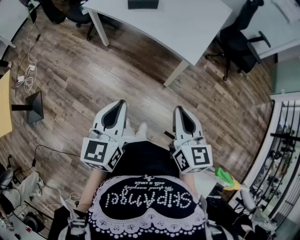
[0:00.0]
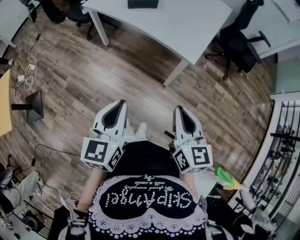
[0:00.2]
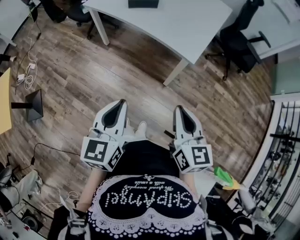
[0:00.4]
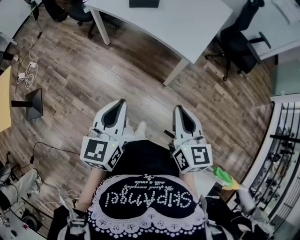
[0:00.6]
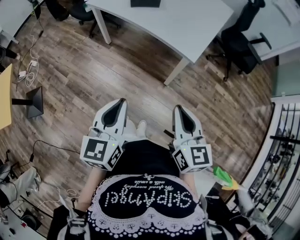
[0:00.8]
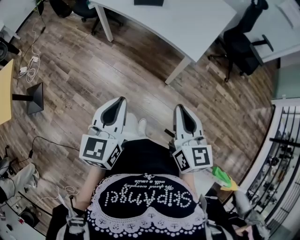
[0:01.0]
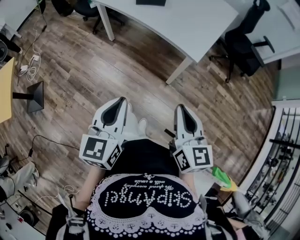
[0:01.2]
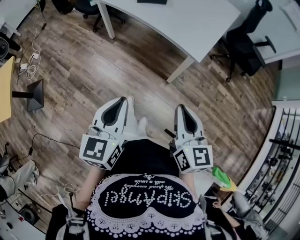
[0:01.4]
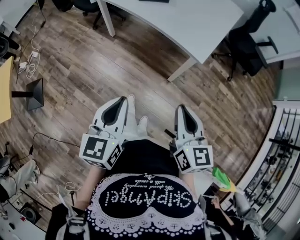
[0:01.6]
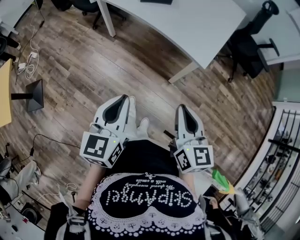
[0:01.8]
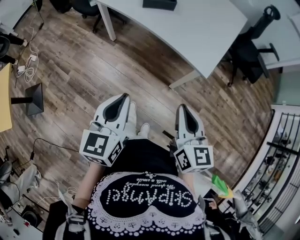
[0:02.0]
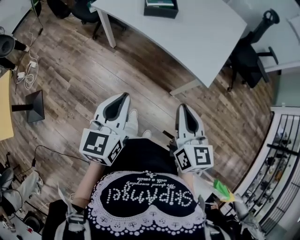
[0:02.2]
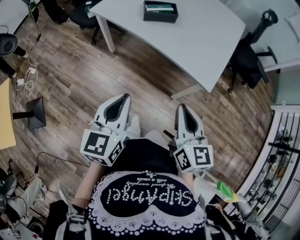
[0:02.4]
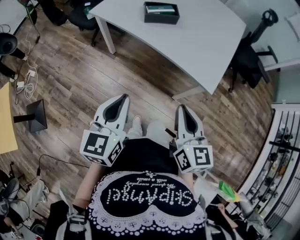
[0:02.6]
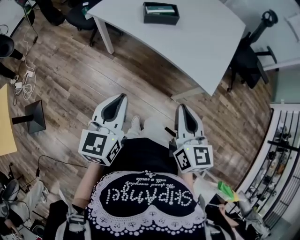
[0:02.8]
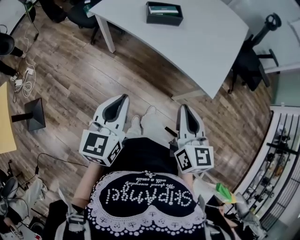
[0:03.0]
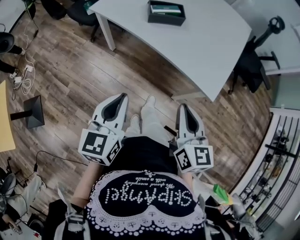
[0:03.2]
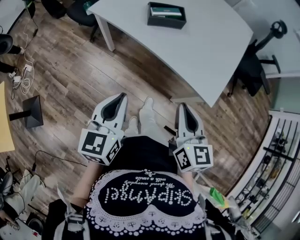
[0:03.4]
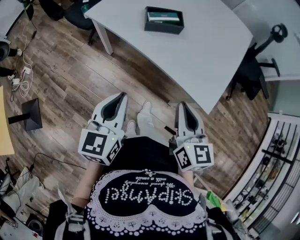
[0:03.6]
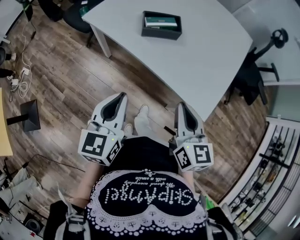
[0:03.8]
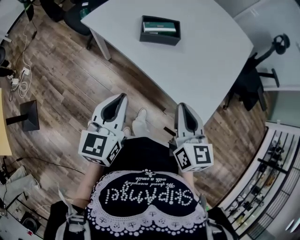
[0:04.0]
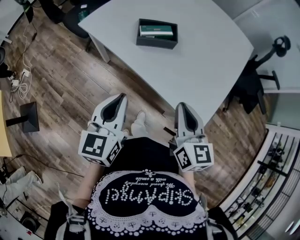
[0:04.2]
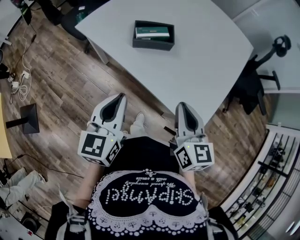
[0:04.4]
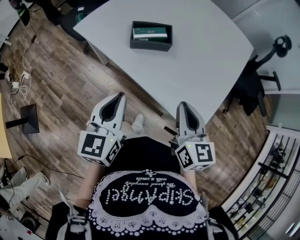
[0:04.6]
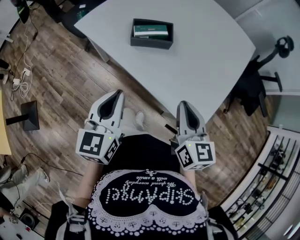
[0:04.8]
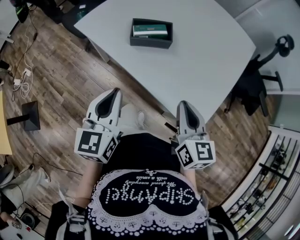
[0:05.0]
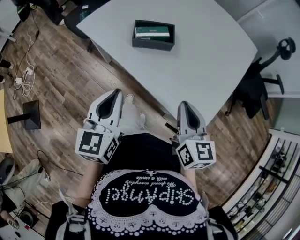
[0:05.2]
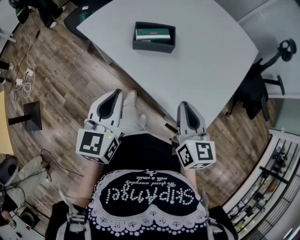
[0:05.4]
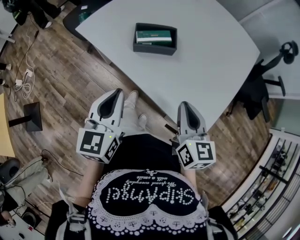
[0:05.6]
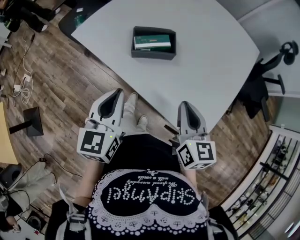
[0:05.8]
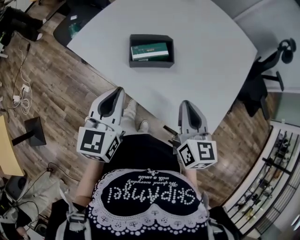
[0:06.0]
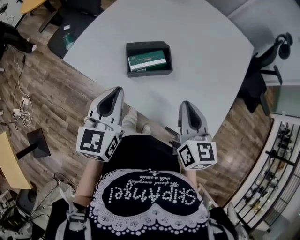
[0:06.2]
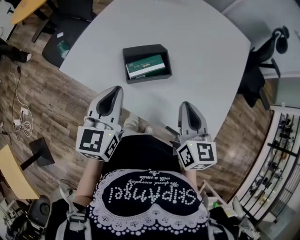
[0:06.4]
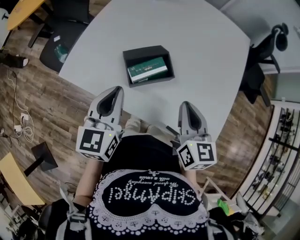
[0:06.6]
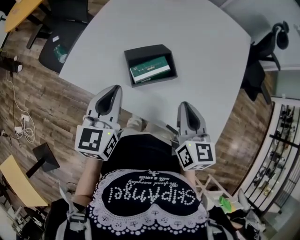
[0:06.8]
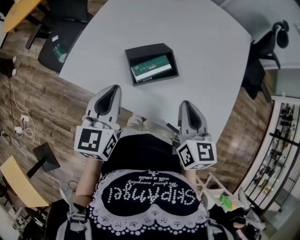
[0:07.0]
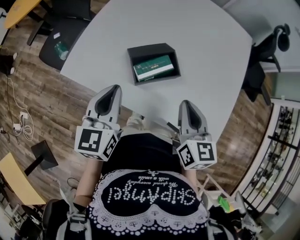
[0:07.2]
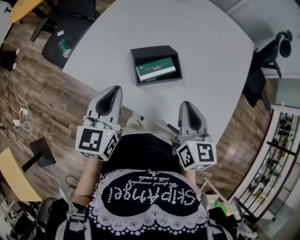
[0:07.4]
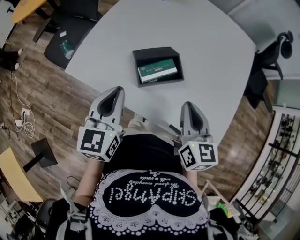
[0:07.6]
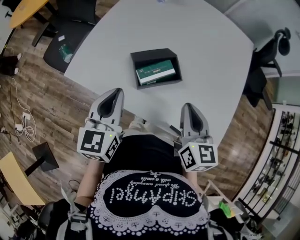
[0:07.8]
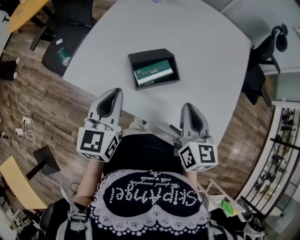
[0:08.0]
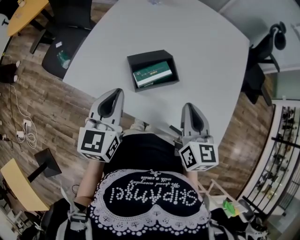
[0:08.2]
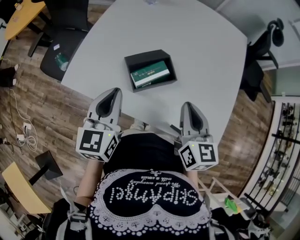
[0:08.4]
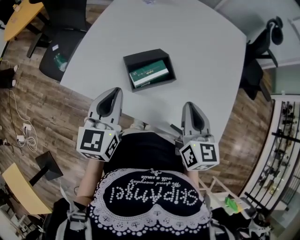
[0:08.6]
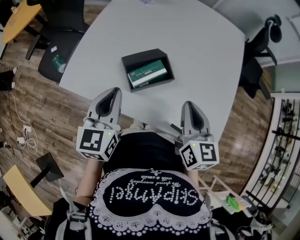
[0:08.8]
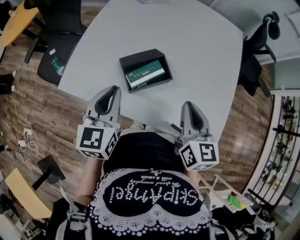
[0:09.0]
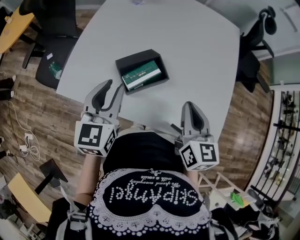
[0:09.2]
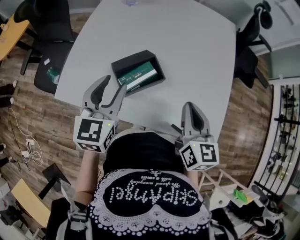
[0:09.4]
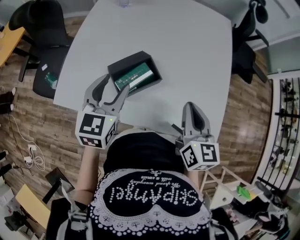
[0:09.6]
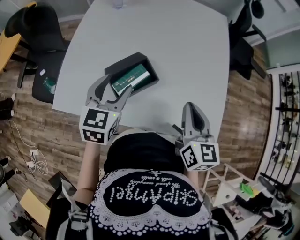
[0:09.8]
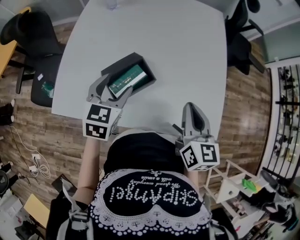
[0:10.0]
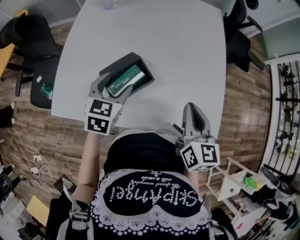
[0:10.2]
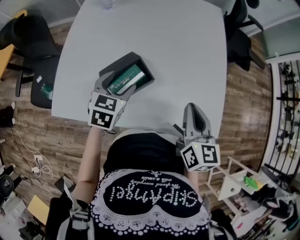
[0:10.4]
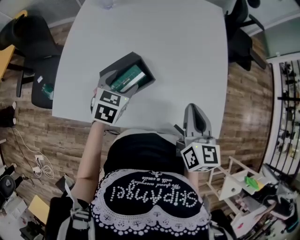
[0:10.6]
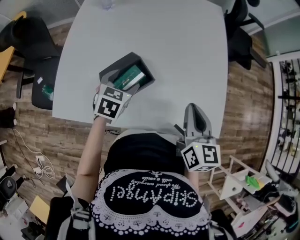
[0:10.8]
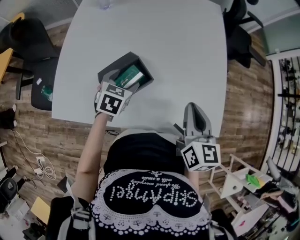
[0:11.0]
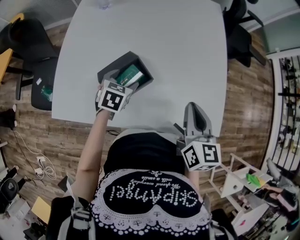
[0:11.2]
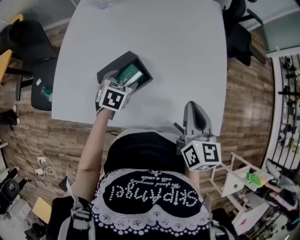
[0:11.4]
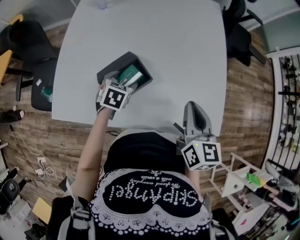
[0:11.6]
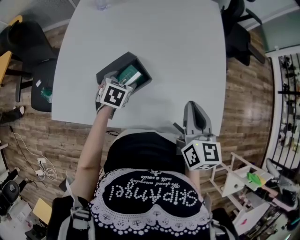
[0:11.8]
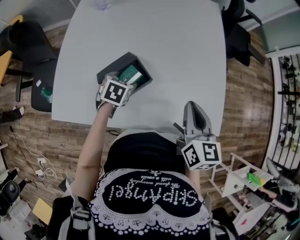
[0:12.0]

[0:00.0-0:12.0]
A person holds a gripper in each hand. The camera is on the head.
0:00.0 to 0:01.6: The grippers make only small movements.
0:01.6 to 0:03.0: Both grippers travel together forward and to the left, roughly 25 cm.
0:03.0 to 0:04.4: Both grippers move forward, about 20 cm.
0:04.4 to 0:06.0: The grippers both shift forward by approximately 15 cm.
0:06.0 to 0:07.6: The right gripper shifts some 10 cm to the left and forward, while the left gripper heads forward and to the left, covering roughly 10 cm.
0:07.6 to 0:09.0: There are only small adjustments of the grippers.
0:09.0 to 0:10.4: The left gripper shifts roughly 15 cm forward, downward and to the right, rotates about 30 degrees, and opens up. Meanwhile the right gripper goes about 5 cm to the right.
0:10.4 to 0:12.0: The left gripper moves downward, about 10 cm.

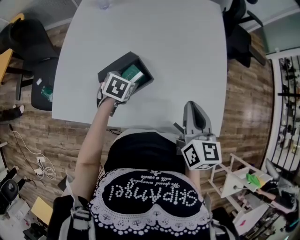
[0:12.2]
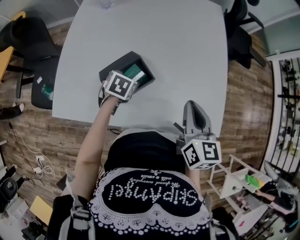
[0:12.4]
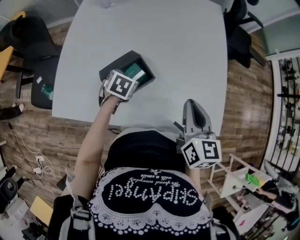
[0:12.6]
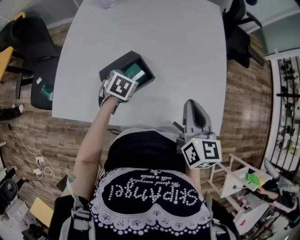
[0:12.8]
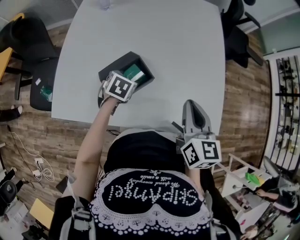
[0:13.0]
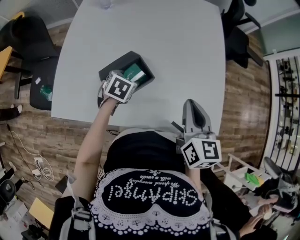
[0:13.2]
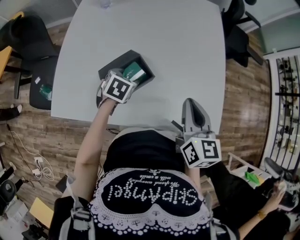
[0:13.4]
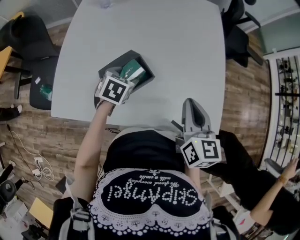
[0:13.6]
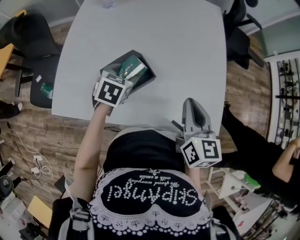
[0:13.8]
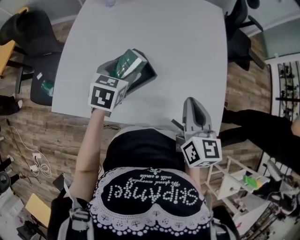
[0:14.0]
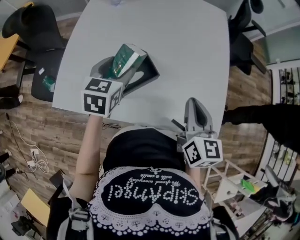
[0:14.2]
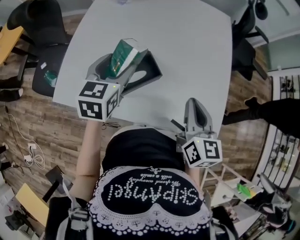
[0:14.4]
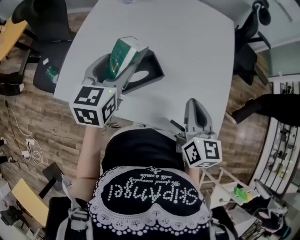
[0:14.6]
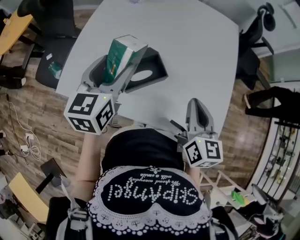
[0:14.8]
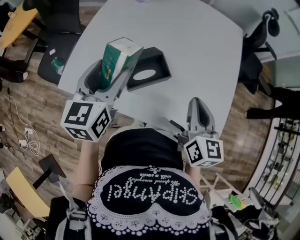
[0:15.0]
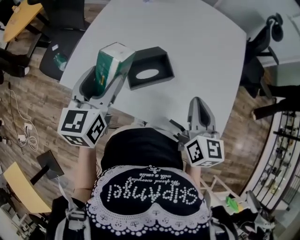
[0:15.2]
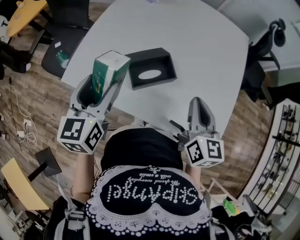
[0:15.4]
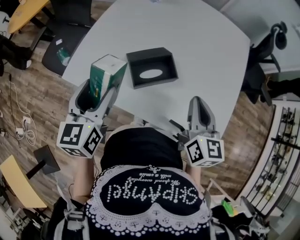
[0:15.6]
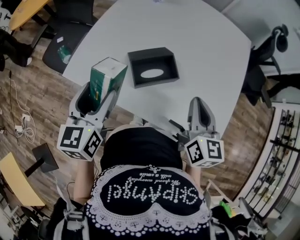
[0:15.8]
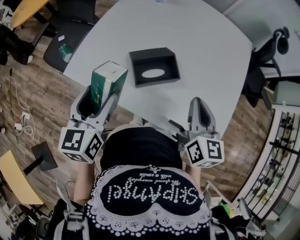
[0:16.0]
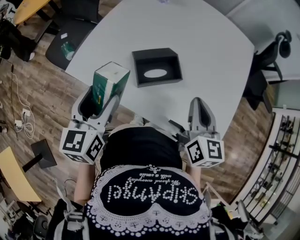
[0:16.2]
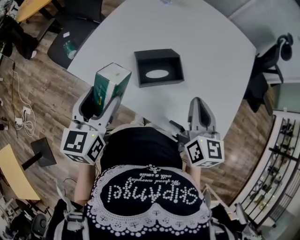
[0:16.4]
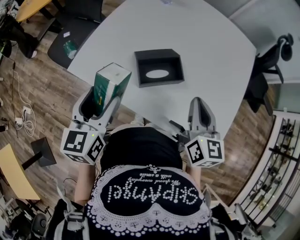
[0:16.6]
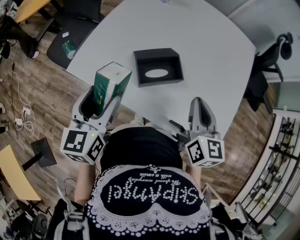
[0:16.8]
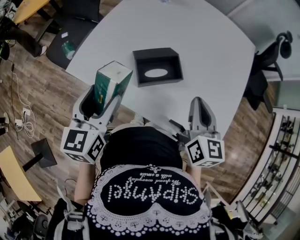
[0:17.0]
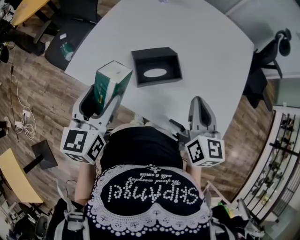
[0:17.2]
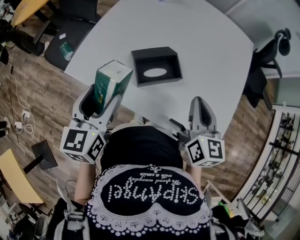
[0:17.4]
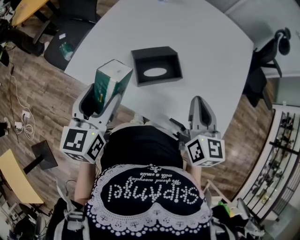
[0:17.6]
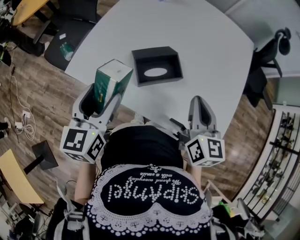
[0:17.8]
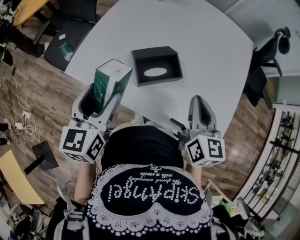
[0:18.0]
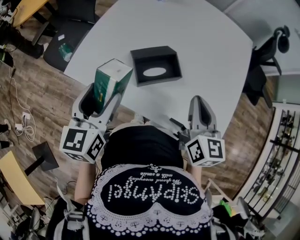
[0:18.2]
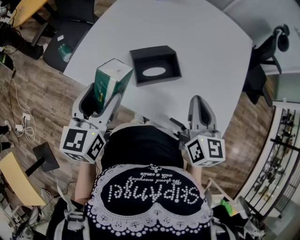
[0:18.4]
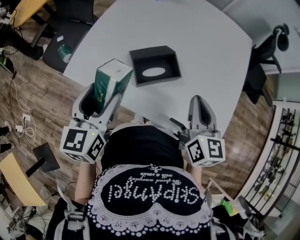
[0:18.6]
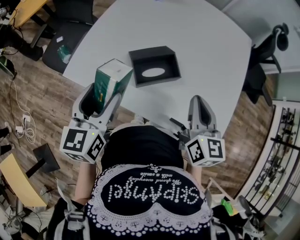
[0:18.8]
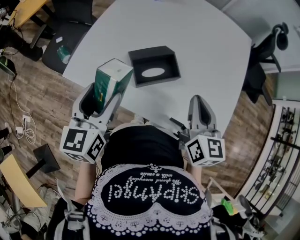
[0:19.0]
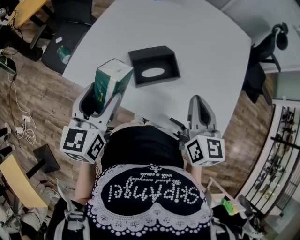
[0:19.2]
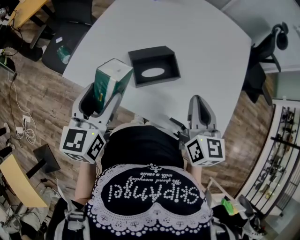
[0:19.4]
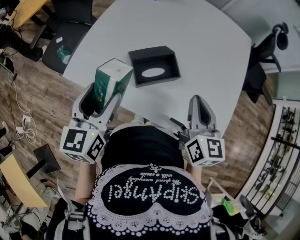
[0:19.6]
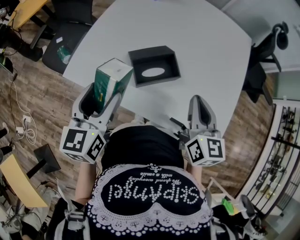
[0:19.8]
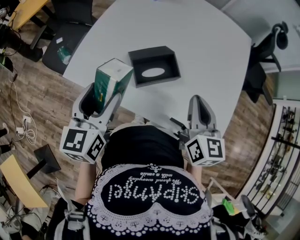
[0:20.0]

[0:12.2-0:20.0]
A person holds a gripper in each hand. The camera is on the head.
0:12.2 to 0:13.8: The left gripper moves upward, about 5 cm.
0:13.8 to 0:15.4: The right gripper changes place by some 5 cm. Meanwhile the left gripper travels upward, to the left and backward by approximately 25 cm, and angles its fingers upward, by some 30 degrees.
0:15.4 to 0:16.8: The left gripper moves about 5 cm.
0:16.8 to 0:18.4: The grippers make only small movements.
0:18.4 to 0:20.0: The two grippers keep their place.

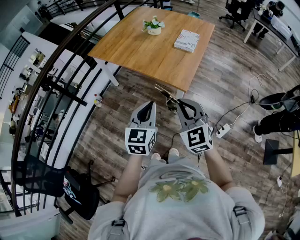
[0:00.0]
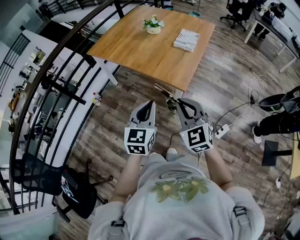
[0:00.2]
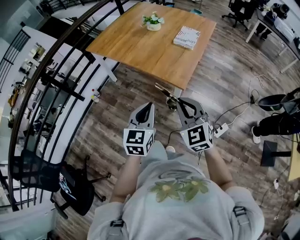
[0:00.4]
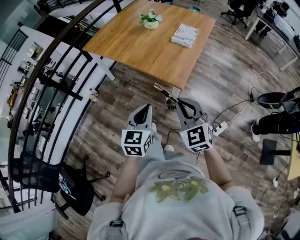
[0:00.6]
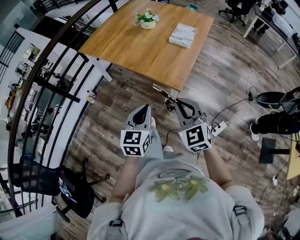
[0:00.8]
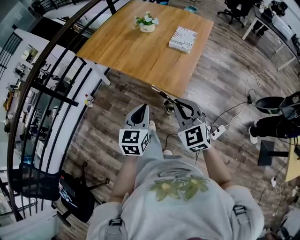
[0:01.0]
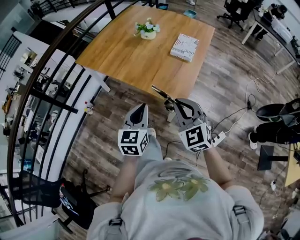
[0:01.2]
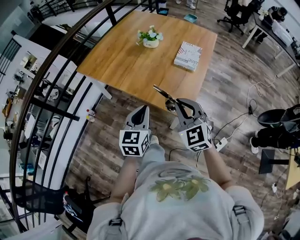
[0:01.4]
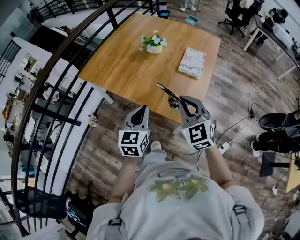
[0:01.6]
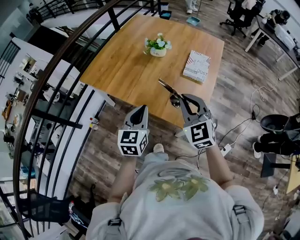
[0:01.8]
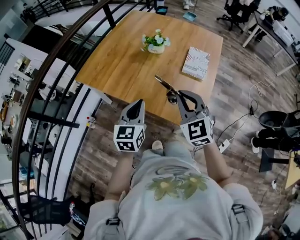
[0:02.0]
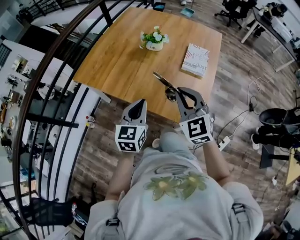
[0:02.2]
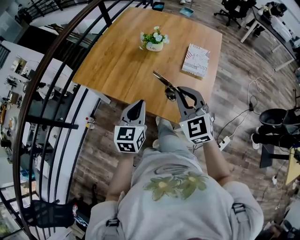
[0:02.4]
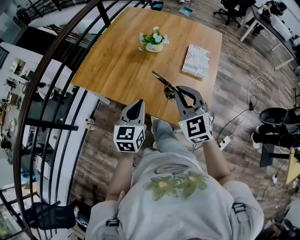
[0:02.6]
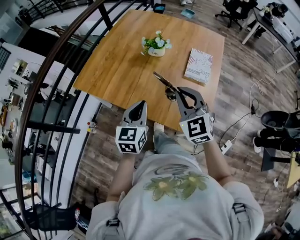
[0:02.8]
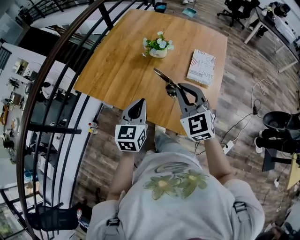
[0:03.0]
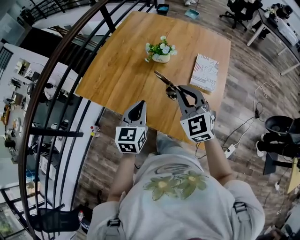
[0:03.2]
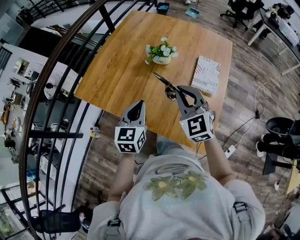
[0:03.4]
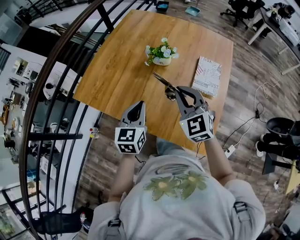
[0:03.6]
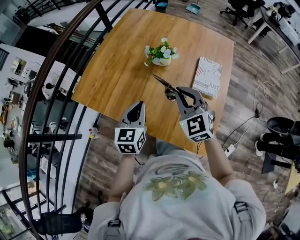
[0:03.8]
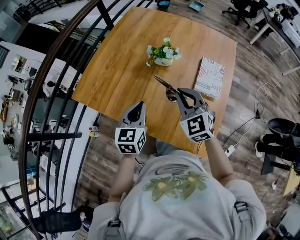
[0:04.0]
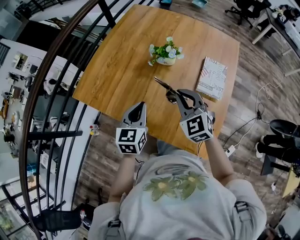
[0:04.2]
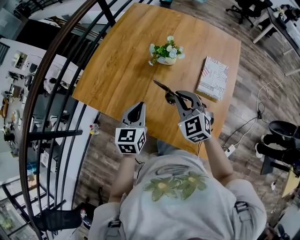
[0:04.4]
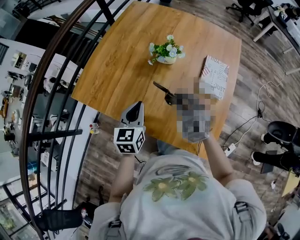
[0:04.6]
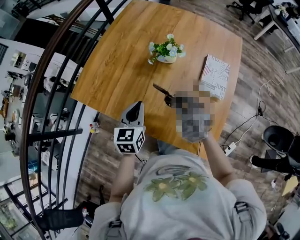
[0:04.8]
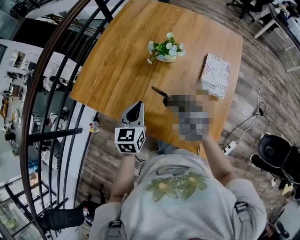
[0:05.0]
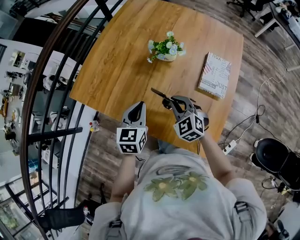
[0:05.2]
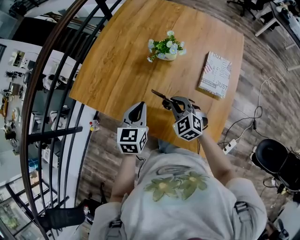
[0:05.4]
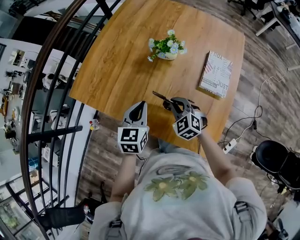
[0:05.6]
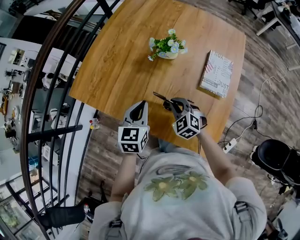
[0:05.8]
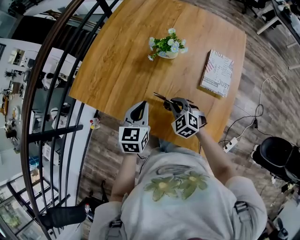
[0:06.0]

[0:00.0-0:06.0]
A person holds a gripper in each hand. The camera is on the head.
0:00.0 to 0:01.6: The grippers both shift forward by approximately 25 cm.
0:01.6 to 0:03.0: The two grippers go some 15 cm forward.
0:03.0 to 0:04.4: The left gripper heads forward, covering approximately 10 cm. The right gripper heads downward and forward, covering about 15 cm.
0:04.4 to 0:06.0: The right gripper goes roughly 15 cm downward.
